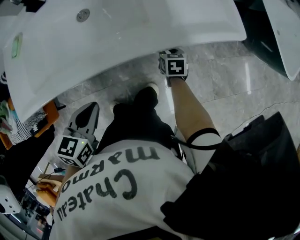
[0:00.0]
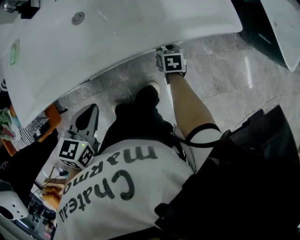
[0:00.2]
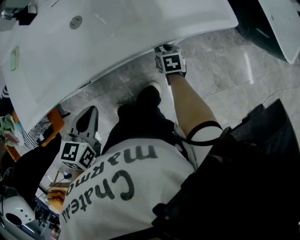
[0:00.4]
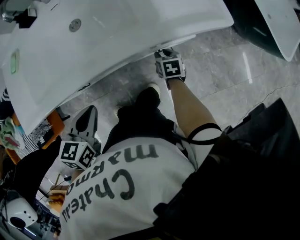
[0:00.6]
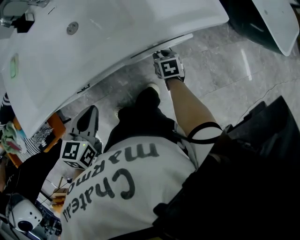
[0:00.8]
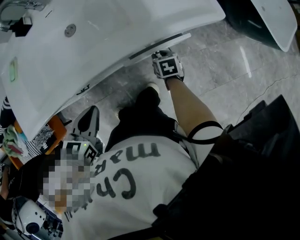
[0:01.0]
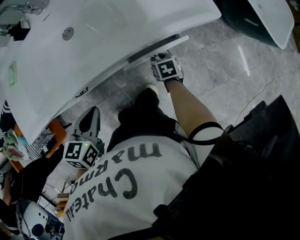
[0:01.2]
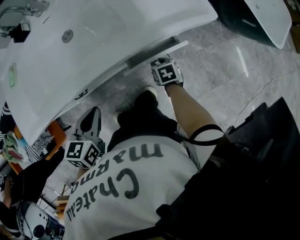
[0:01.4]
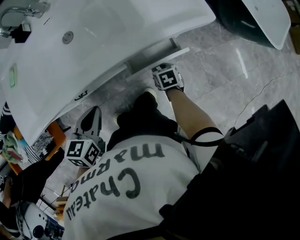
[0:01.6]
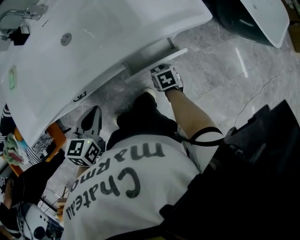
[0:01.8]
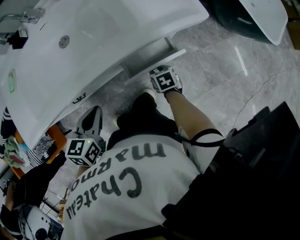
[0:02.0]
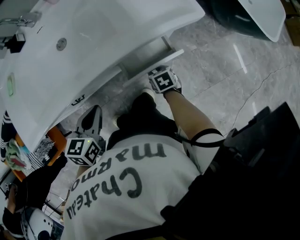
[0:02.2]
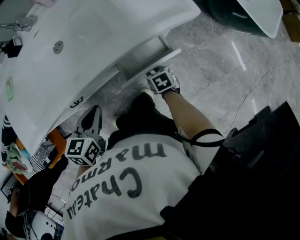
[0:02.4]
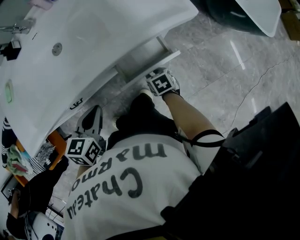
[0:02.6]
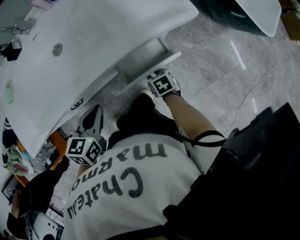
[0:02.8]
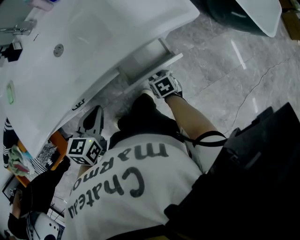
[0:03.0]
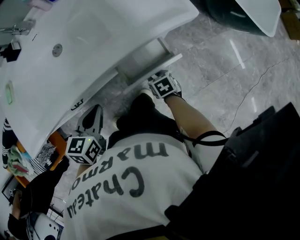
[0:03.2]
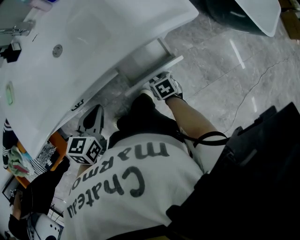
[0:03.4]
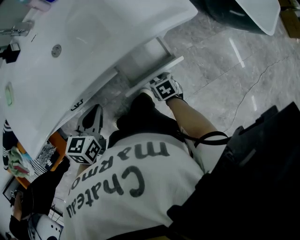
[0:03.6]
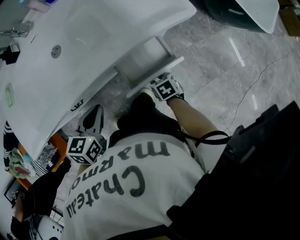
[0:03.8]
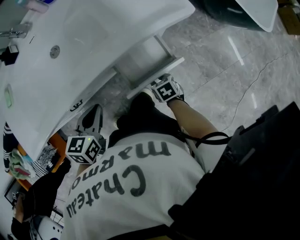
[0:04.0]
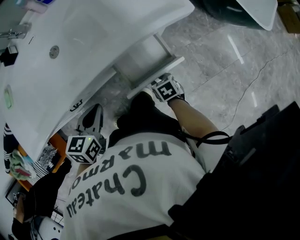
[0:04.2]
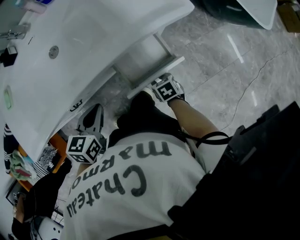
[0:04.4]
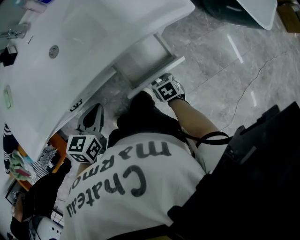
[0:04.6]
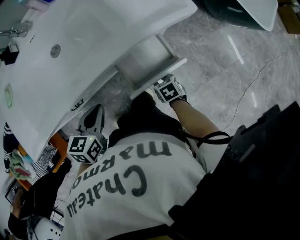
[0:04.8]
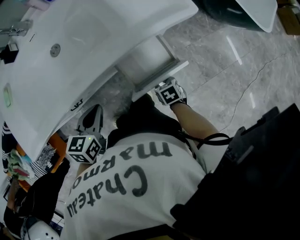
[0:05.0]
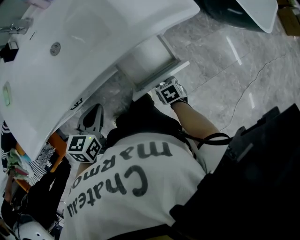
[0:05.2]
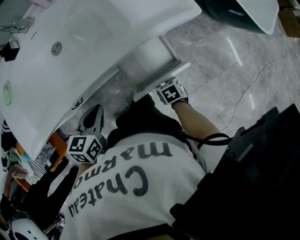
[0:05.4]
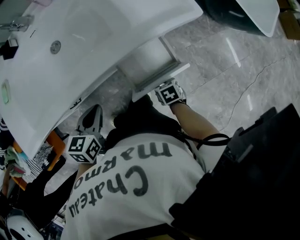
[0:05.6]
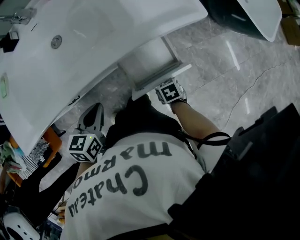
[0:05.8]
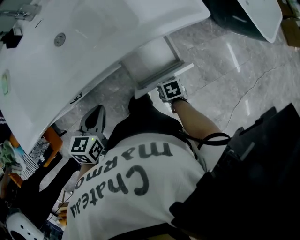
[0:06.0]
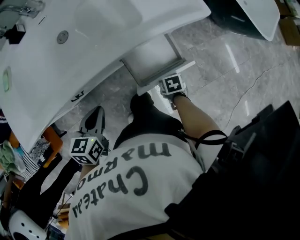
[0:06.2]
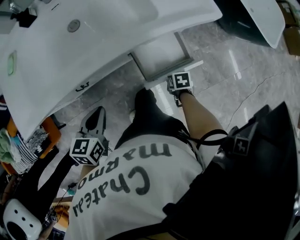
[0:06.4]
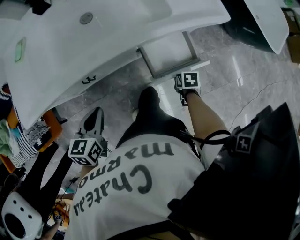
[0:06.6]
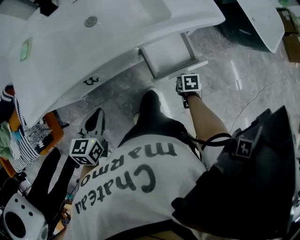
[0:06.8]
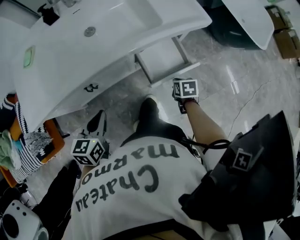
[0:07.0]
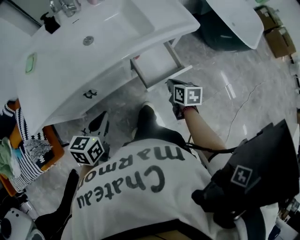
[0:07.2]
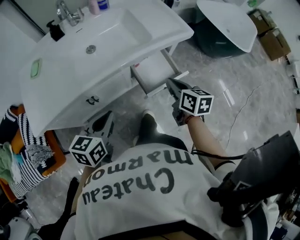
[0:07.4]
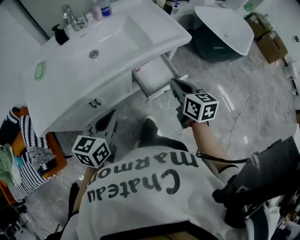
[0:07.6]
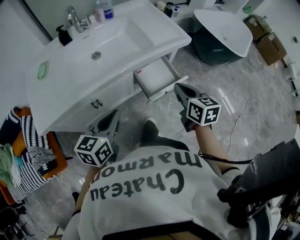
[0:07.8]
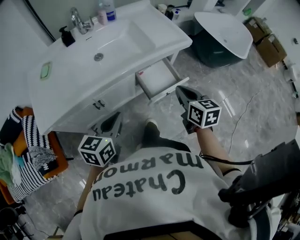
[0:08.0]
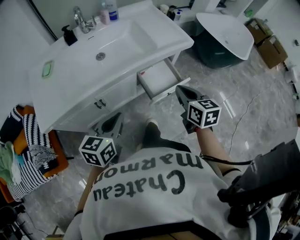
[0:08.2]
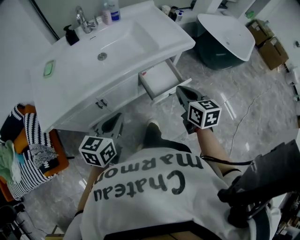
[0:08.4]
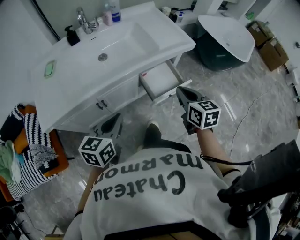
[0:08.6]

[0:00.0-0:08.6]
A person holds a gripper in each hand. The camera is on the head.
0:00.0 to 0:01.4: The right gripper shifts roughly 10 cm backward.
0:01.4 to 0:02.8: The left gripper shifts by about 5 cm; the right gripper changes place by about 5 cm.
0:02.8 to 0:04.4: There are only small adjustments of the grippers.
0:04.4 to 0:05.8: There are only small adjustments of the grippers.
0:05.8 to 0:07.2: The right gripper moves upward, some 20 cm, changes its angle by approximately 30 degrees, and closes up; the left gripper moves backward, upward and to the left, approximately 15 cm.
0:07.2 to 0:08.6: The left gripper moves upward, about 5 cm, while the right gripper moves upward, roughly 20 cm, and rotates about 20 degrees.

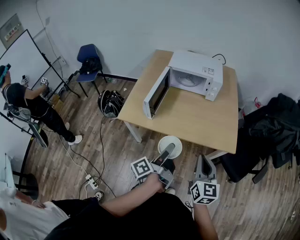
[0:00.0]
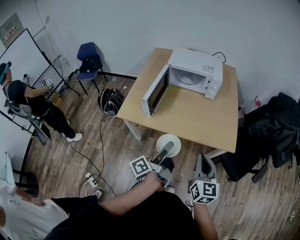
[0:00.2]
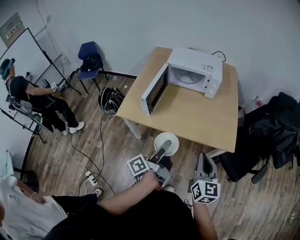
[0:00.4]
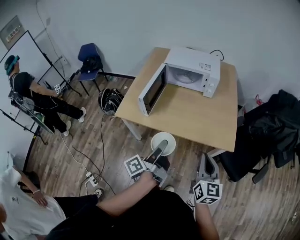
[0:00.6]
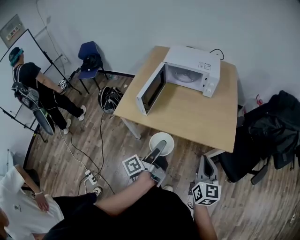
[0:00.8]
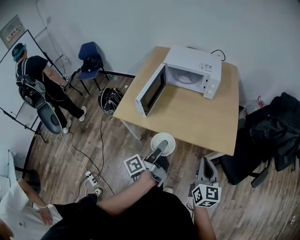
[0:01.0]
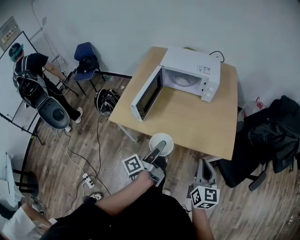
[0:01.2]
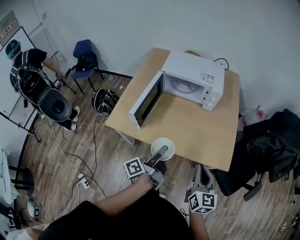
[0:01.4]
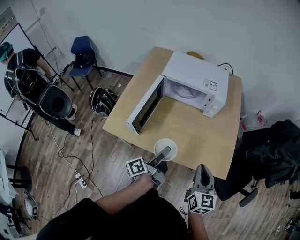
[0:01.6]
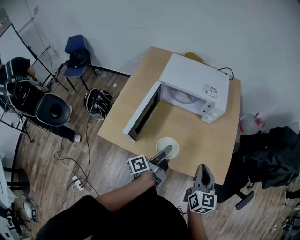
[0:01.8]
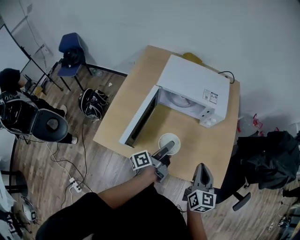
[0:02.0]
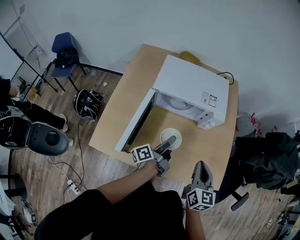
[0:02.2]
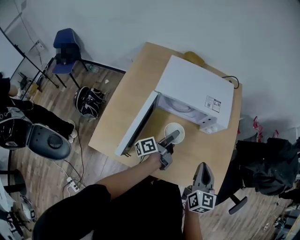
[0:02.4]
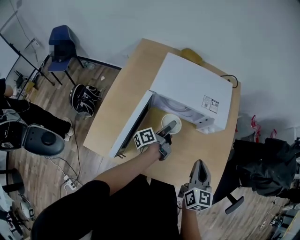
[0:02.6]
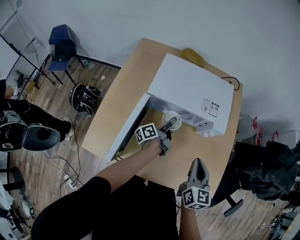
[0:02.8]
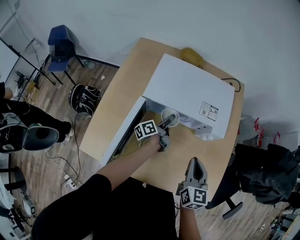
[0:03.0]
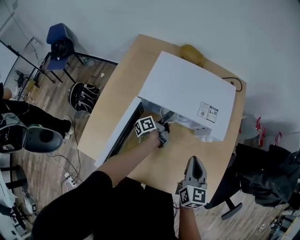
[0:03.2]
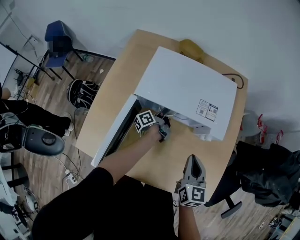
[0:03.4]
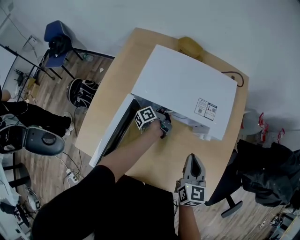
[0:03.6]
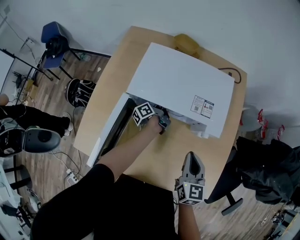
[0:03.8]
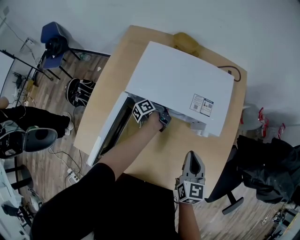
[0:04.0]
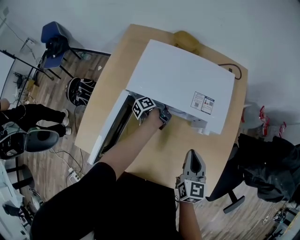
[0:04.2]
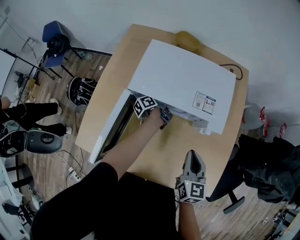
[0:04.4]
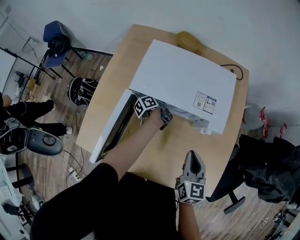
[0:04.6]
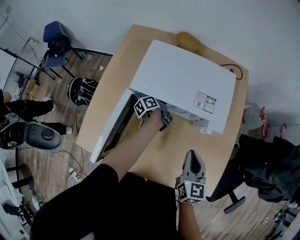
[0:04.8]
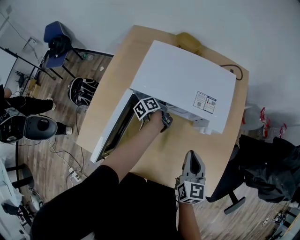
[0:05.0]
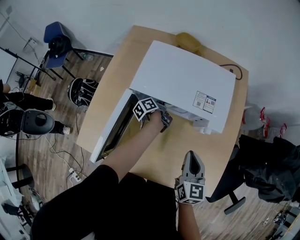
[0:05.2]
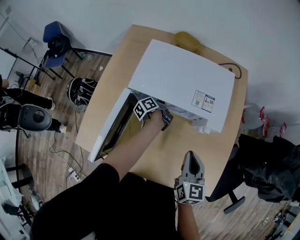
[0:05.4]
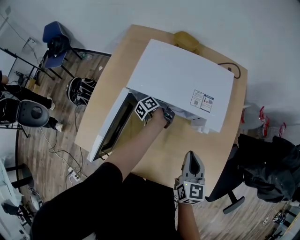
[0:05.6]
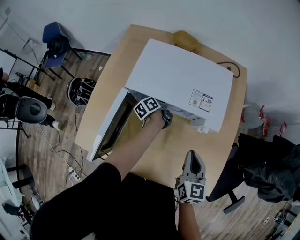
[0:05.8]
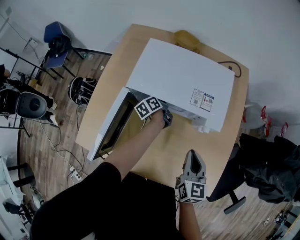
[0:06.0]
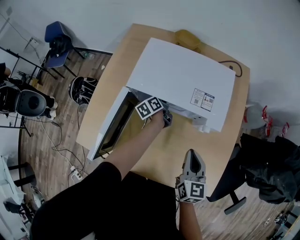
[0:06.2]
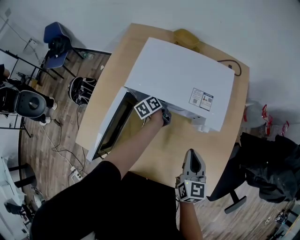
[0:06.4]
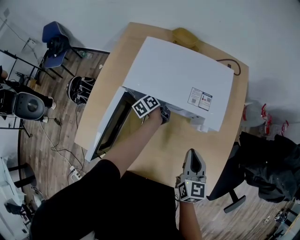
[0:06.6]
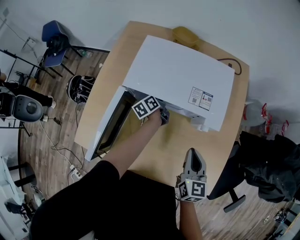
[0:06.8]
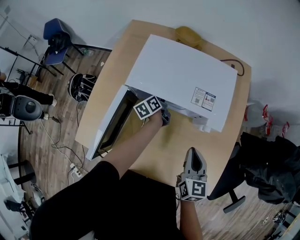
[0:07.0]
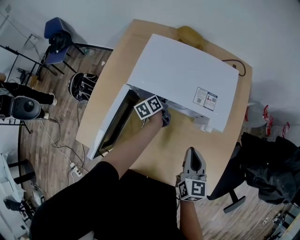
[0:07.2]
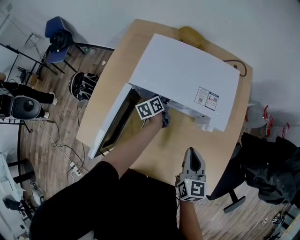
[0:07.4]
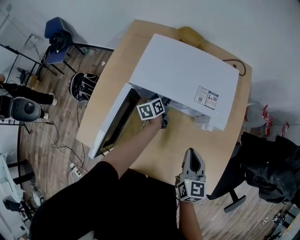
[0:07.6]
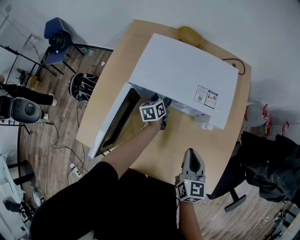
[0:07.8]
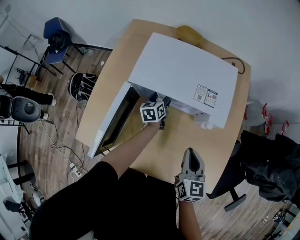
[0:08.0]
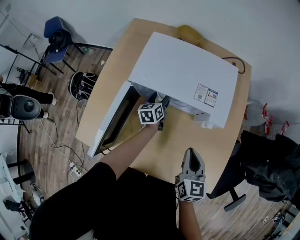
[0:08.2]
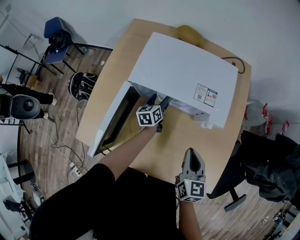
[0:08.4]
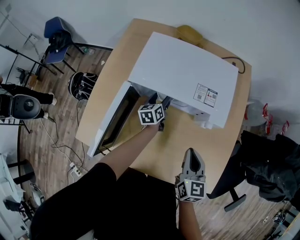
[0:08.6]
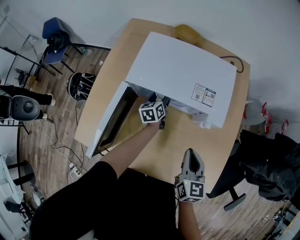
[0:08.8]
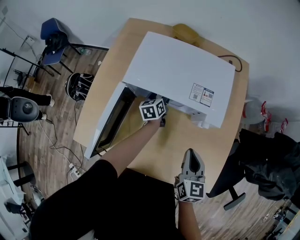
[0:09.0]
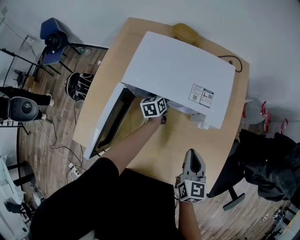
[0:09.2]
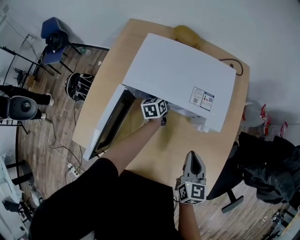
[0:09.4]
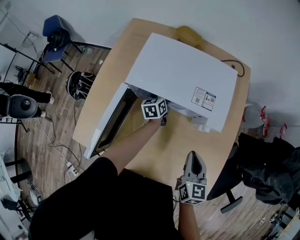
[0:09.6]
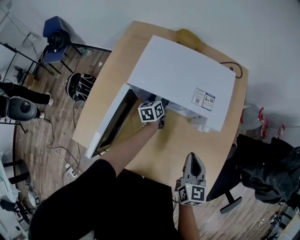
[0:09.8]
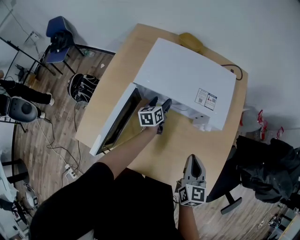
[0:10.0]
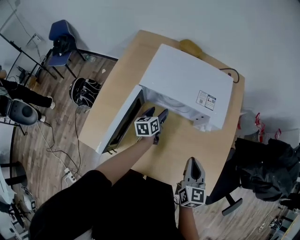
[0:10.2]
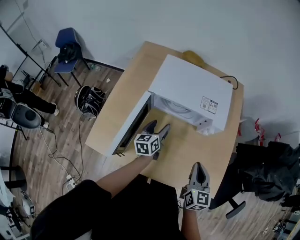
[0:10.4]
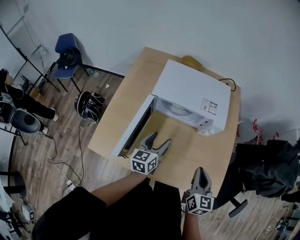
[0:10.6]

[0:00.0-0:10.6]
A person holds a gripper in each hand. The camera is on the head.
0:00.0 to 0:01.6: The grippers both shift forward by roughly 15 cm.
0:01.6 to 0:03.0: The left gripper goes some 40 cm forward and downward. Meanwhile the right gripper travels forward by roughly 25 cm.
0:03.0 to 0:04.6: The left gripper is displaced forward and downward by roughly 10 cm.
0:04.6 to 0:06.0: The left gripper changes its angle by approximately 20 degrees.
0:06.0 to 0:07.6: The left gripper rotates some 20 degrees.
0:07.6 to 0:09.0: The grippers make only small movements.
0:09.0 to 0:10.6: The left gripper heads backward and upward, covering approximately 30 cm, and swivels approximately 20 degrees; the right gripper shifts about 10 cm backward and upward.

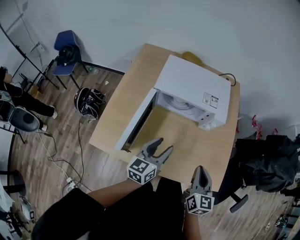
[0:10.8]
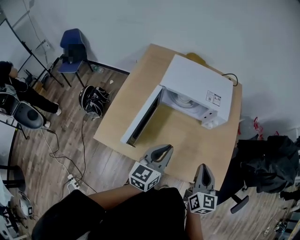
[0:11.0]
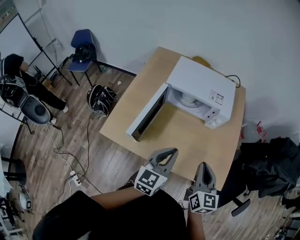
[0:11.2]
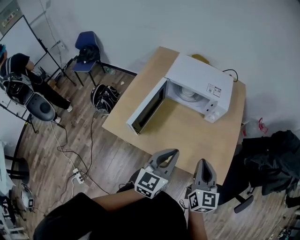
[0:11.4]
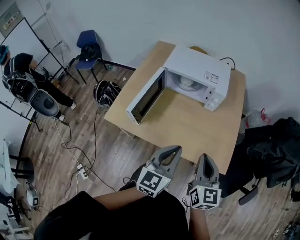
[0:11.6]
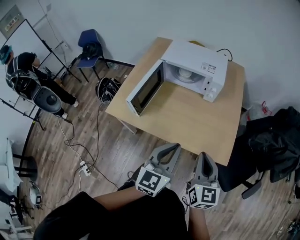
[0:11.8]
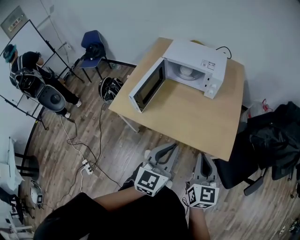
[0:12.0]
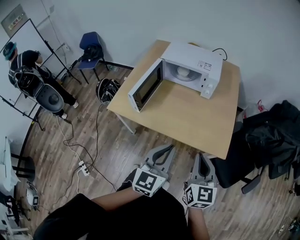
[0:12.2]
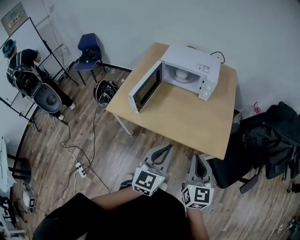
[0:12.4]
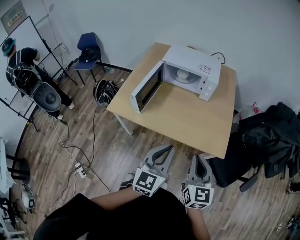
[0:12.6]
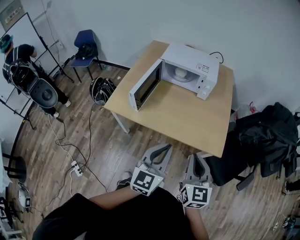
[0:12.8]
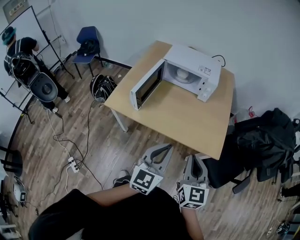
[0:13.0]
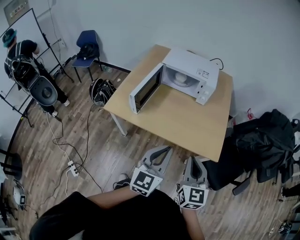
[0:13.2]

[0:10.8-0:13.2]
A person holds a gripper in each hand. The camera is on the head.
0:10.8 to 0:12.0: The left gripper heads backward and to the right, covering roughly 30 cm, turns by roughly 20 degrees, and closes; the right gripper shifts roughly 20 cm backward.
0:12.0 to 0:13.2: The grippers both shift backward by some 5 cm.

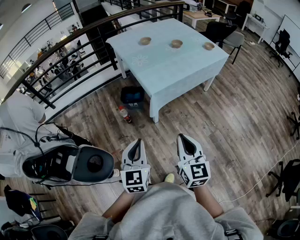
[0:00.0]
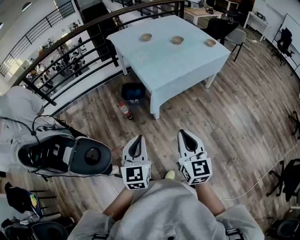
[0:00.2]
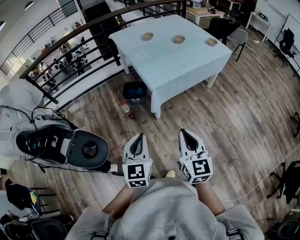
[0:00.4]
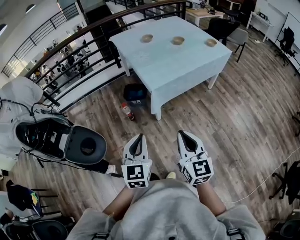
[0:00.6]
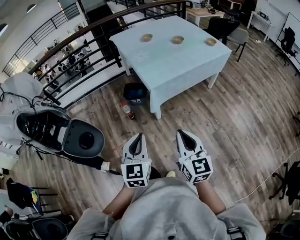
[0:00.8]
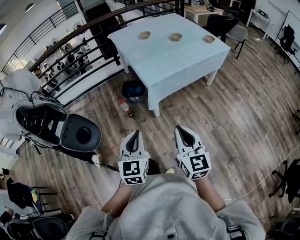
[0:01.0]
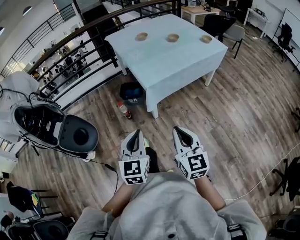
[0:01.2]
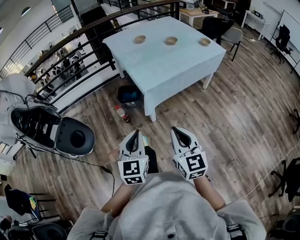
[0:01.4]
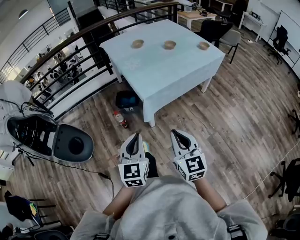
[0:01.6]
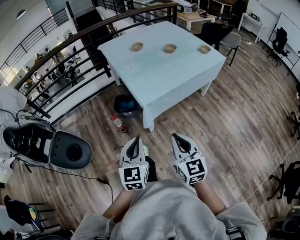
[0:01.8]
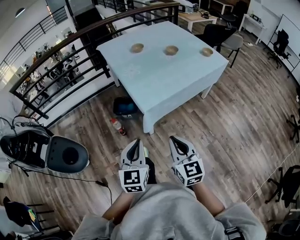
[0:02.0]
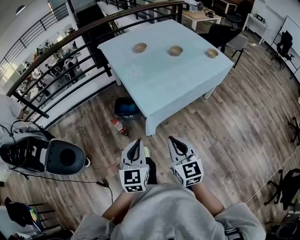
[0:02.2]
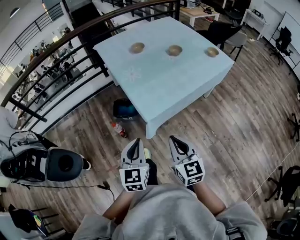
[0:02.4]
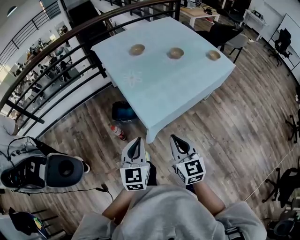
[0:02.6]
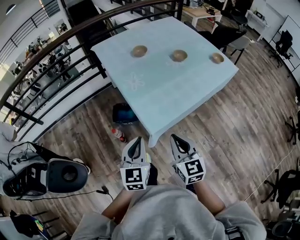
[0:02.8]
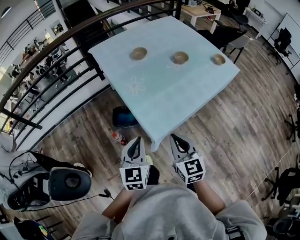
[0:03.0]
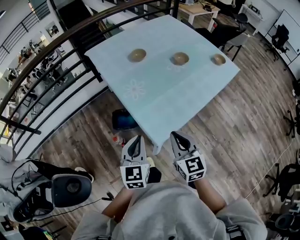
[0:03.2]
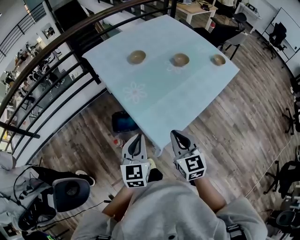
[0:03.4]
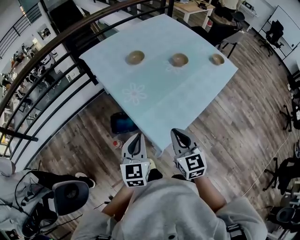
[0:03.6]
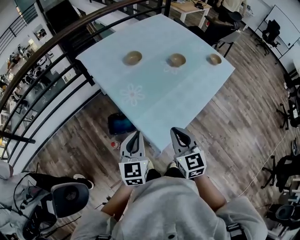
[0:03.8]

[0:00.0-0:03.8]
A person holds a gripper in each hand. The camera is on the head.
0:00.0 to 0:01.2: There are only small adjustments of the grippers.
0:01.2 to 0:02.6: The two grippers go approximately 30 cm forward.
0:02.6 to 0:03.8: The grippers both shift forward by approximately 20 cm.
